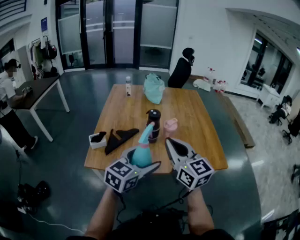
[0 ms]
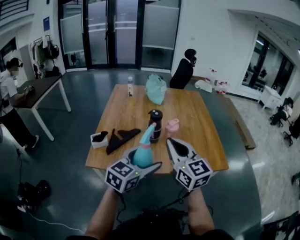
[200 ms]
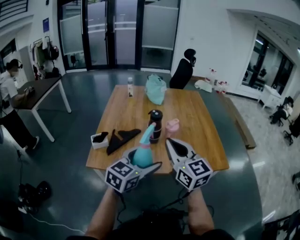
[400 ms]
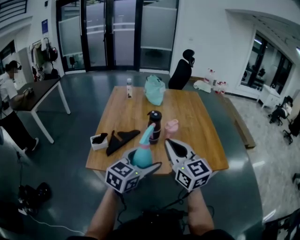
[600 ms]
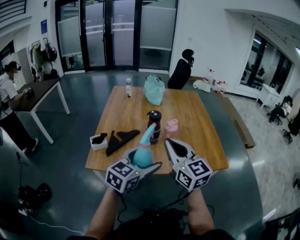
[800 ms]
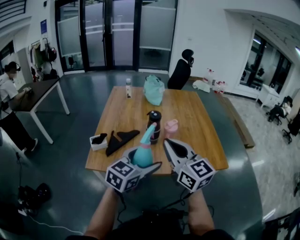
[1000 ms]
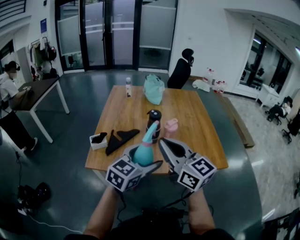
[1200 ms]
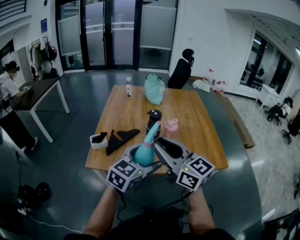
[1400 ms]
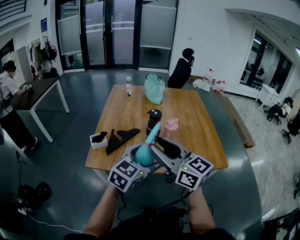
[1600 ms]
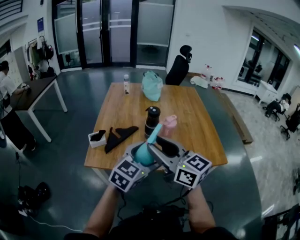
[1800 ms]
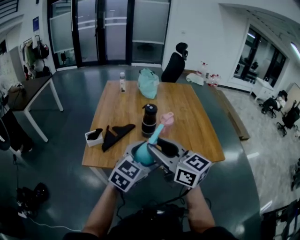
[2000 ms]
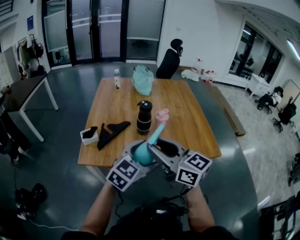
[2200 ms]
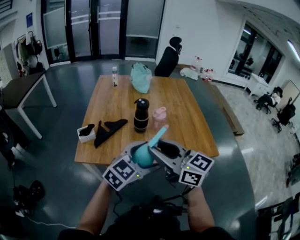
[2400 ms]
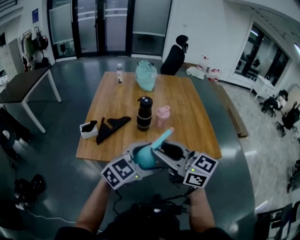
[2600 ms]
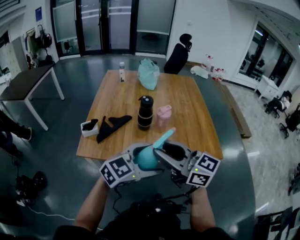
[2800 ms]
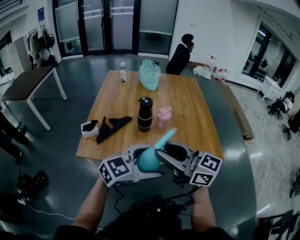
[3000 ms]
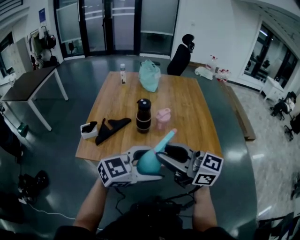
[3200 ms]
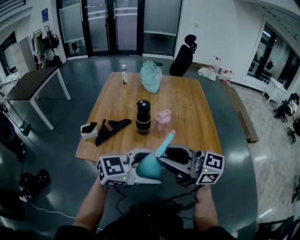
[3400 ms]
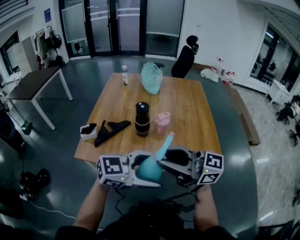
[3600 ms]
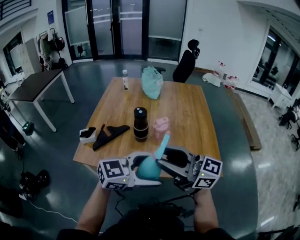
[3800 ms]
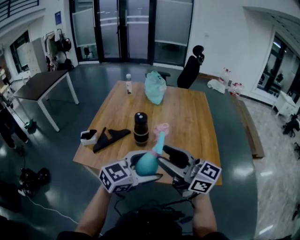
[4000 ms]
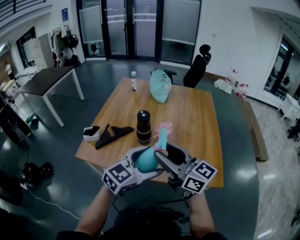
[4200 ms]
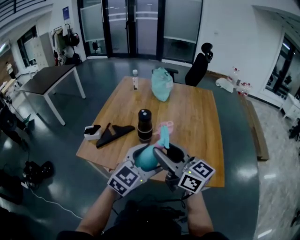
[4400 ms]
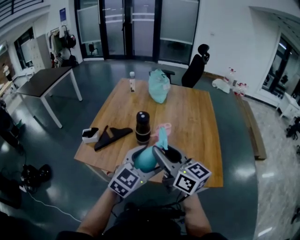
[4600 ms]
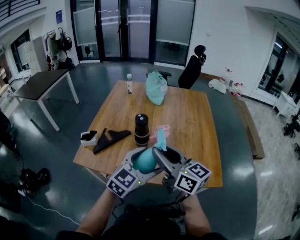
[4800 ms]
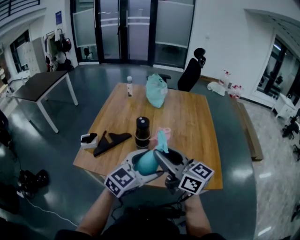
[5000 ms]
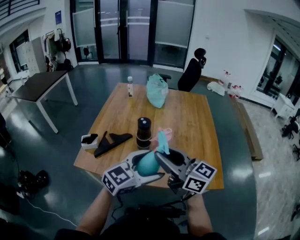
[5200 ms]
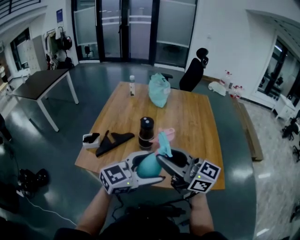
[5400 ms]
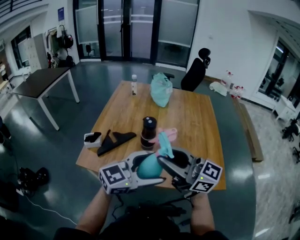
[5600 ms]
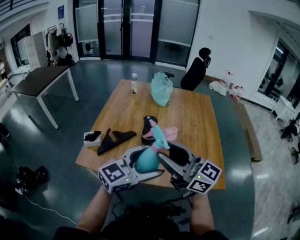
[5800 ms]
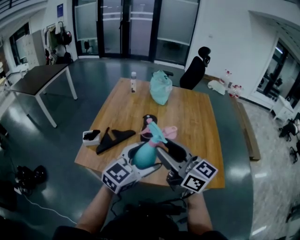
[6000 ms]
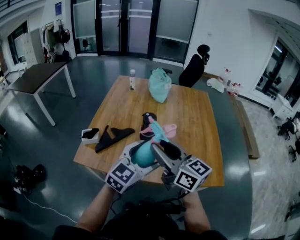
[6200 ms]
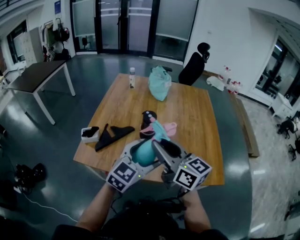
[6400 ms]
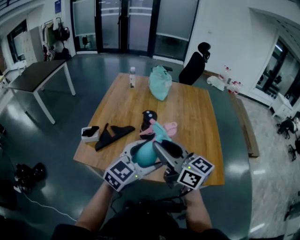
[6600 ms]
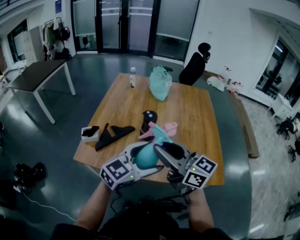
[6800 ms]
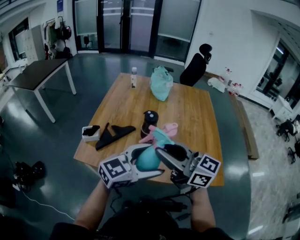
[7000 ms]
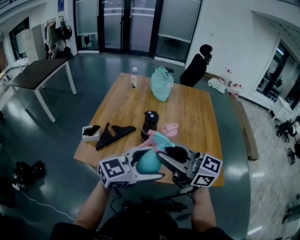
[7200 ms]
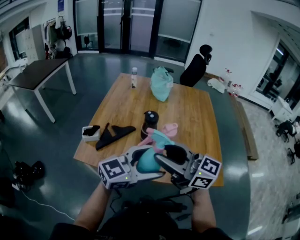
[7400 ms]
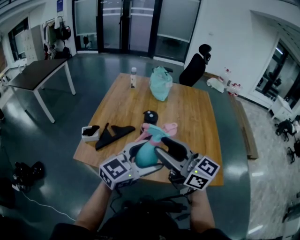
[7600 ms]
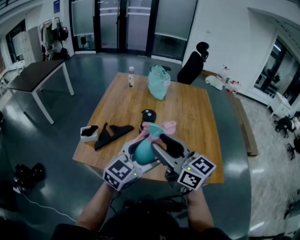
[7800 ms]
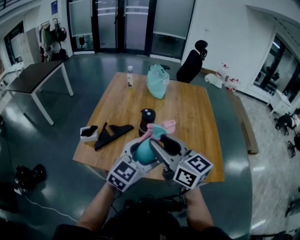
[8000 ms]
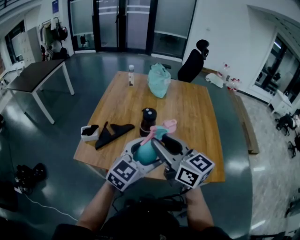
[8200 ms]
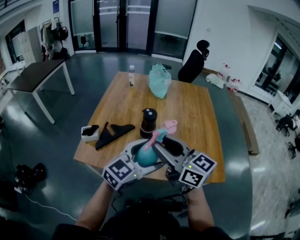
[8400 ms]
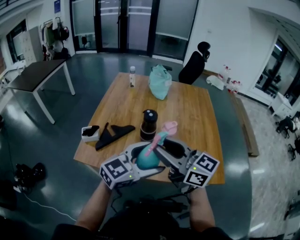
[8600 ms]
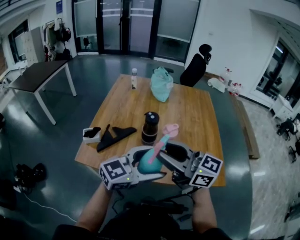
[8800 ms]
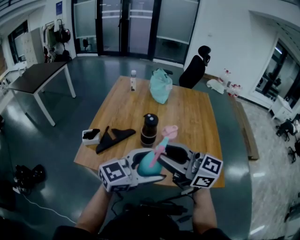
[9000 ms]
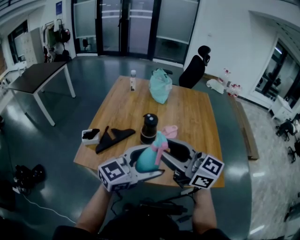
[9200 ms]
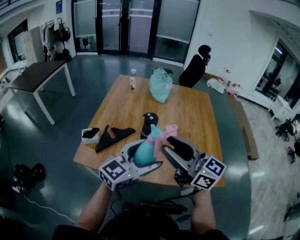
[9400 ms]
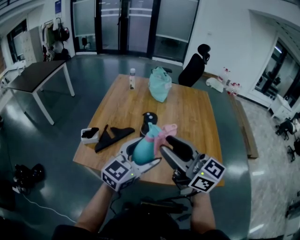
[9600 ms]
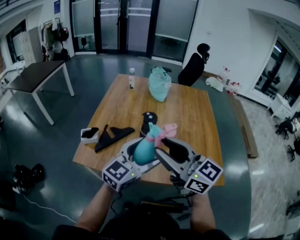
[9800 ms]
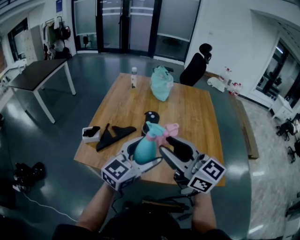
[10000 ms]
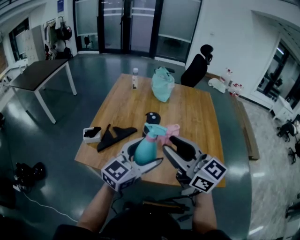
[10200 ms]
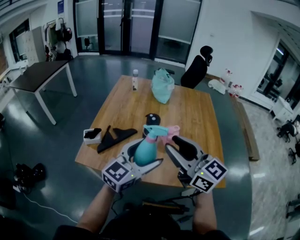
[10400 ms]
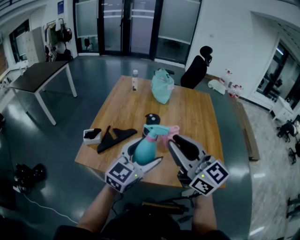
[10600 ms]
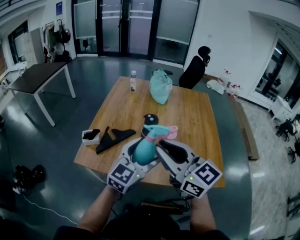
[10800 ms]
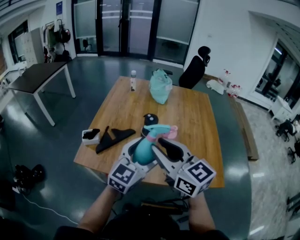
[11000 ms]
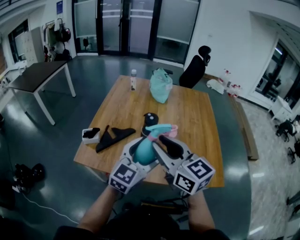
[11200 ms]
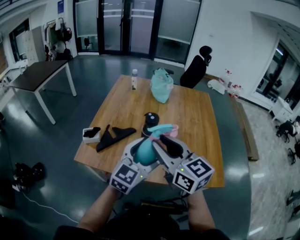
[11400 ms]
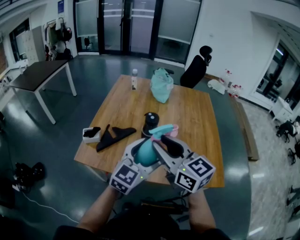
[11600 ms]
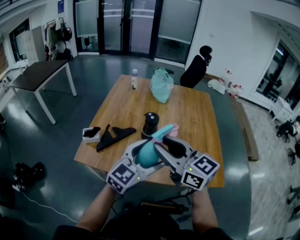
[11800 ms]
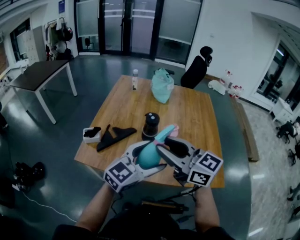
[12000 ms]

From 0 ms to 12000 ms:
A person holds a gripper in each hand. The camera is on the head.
From 0 ms to 1600 ms: The right gripper moves to the left, approximately 5 cm, and opens.
From 1600 ms to 3000 ms: The left gripper moves roughly 10 cm, and rotates some 30 degrees. The right gripper shifts by roughly 10 cm.
From 3000 ms to 4400 ms: The left gripper shifts by about 10 cm, and swivels some 30 degrees, while the right gripper moves some 10 cm.
From 4400 ms to 6000 ms: The left gripper shifts by roughly 5 cm; the right gripper ends up approximately 5 cm from where it was.
From 7600 ms to 9000 ms: The grippers stay close to where they were, moving slightly.
From 9000 ms to 10400 ms: The right gripper swivels approximately 20 degrees. The left gripper ends up about 5 cm from where it was, and changes its angle by some 20 degrees.
From 10400 ms to 12000 ms: The grippers stay close to where they were, moving slightly.

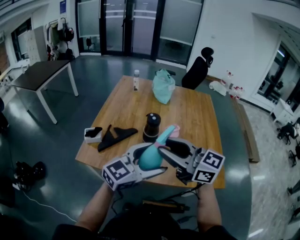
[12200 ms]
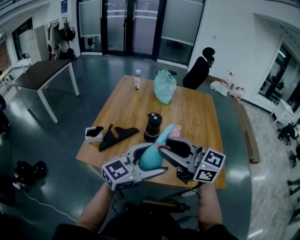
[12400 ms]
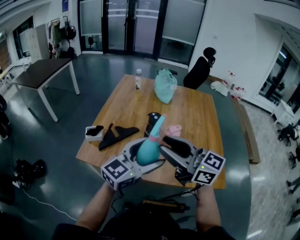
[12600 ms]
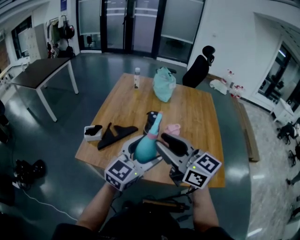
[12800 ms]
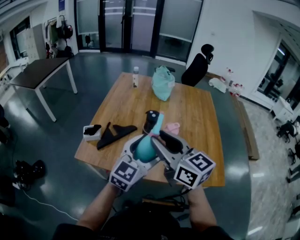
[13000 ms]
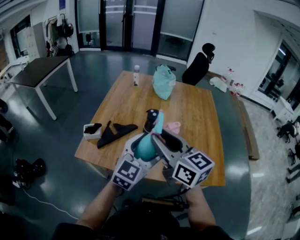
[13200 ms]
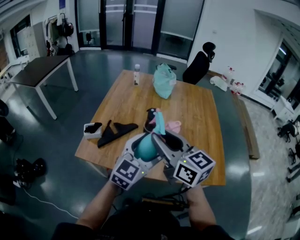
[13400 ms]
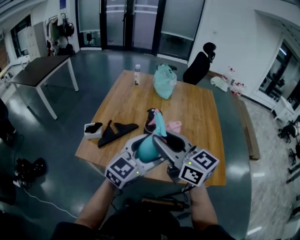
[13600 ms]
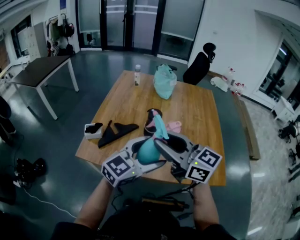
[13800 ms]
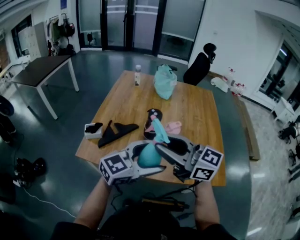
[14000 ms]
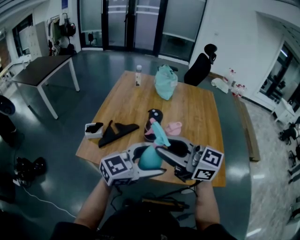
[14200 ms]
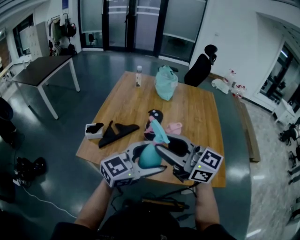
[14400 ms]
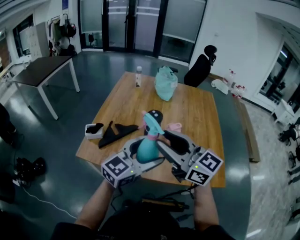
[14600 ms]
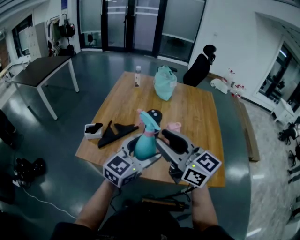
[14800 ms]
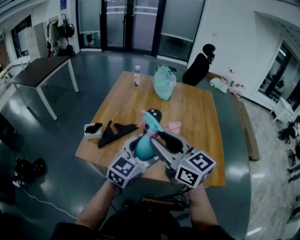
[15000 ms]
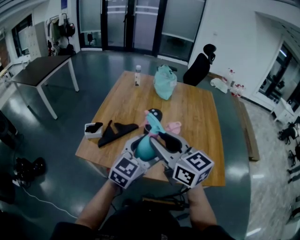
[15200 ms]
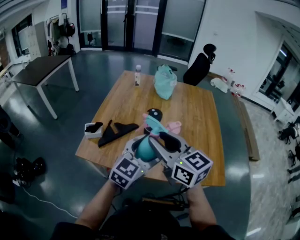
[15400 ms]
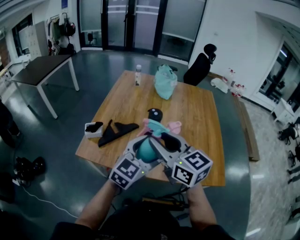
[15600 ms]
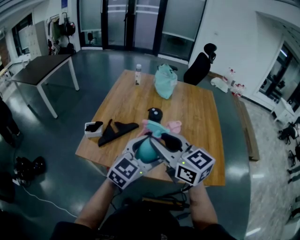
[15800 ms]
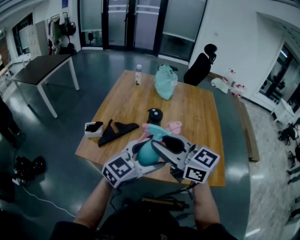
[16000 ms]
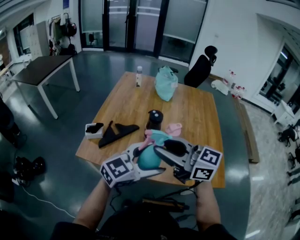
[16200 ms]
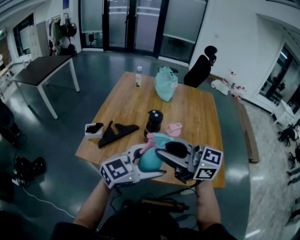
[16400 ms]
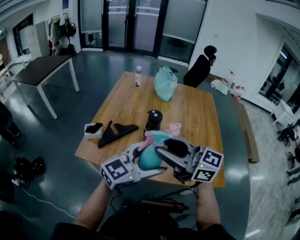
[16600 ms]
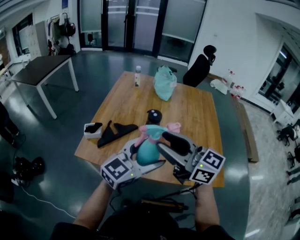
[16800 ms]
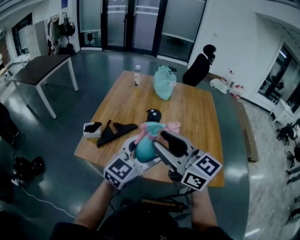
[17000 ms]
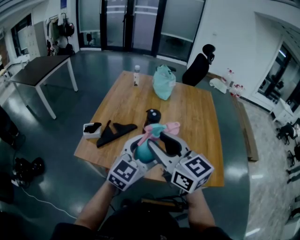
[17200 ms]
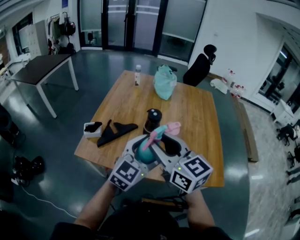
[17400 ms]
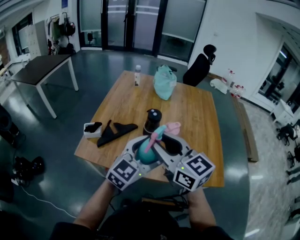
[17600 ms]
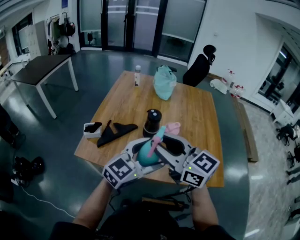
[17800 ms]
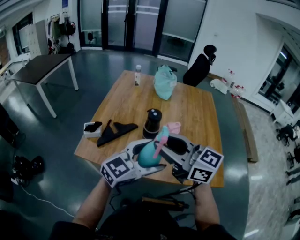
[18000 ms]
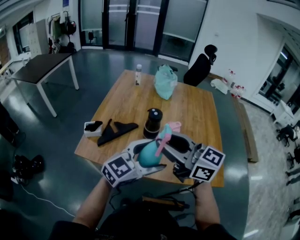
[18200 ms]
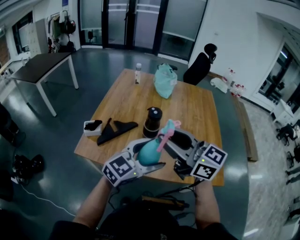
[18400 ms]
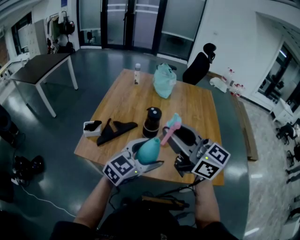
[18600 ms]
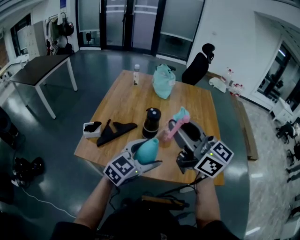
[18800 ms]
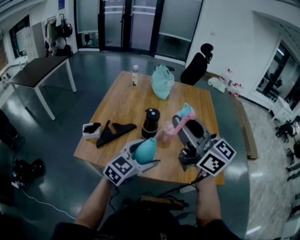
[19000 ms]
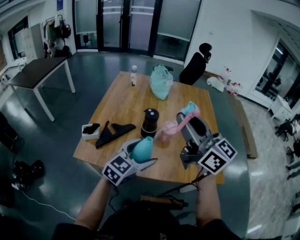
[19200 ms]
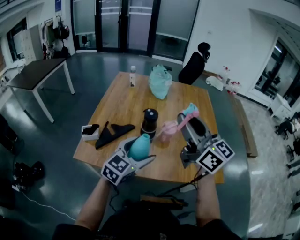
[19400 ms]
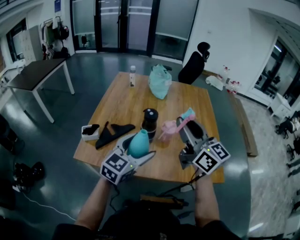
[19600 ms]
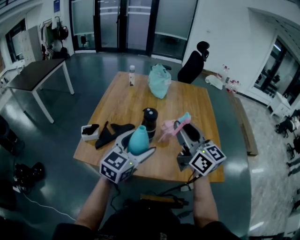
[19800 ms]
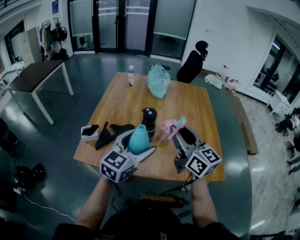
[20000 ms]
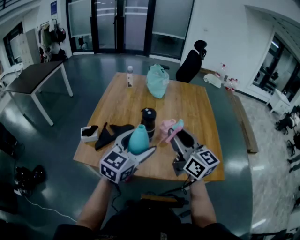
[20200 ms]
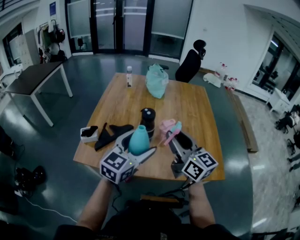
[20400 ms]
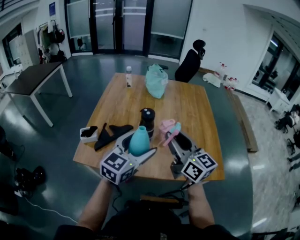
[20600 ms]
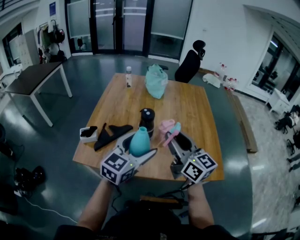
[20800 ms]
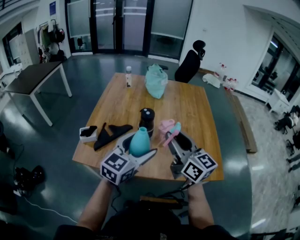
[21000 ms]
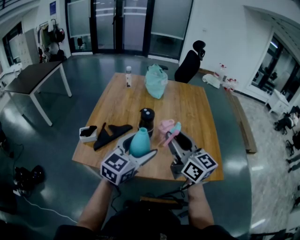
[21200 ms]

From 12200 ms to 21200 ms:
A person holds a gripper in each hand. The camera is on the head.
From 13800 ms to 15200 ms: The grippers move only a little.
From 15200 ms to 16600 ms: The right gripper rotates about 30 degrees; the left gripper ends up approximately 5 cm from where it was, and rotates some 20 degrees.
From 18200 ms to 19800 ms: The left gripper heads forward, covering roughly 5 cm; the right gripper travels to the right and forward by roughly 10 cm, and changes its angle by some 30 degrees.
From 19800 ms to 21200 ms: The grippers move only a little.

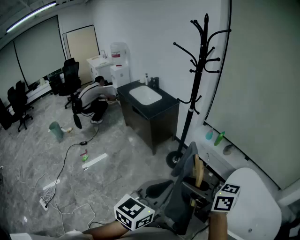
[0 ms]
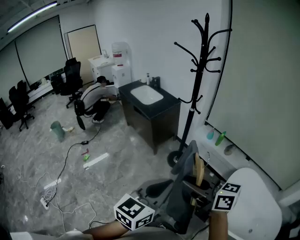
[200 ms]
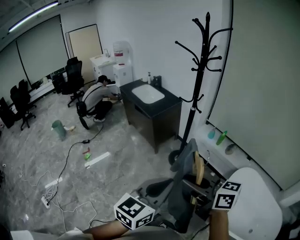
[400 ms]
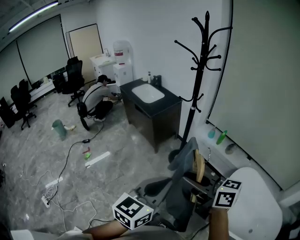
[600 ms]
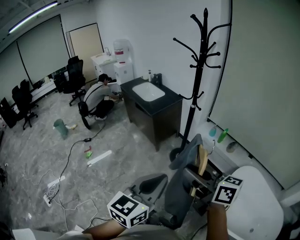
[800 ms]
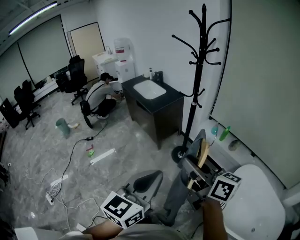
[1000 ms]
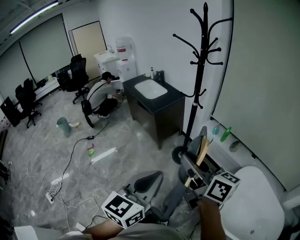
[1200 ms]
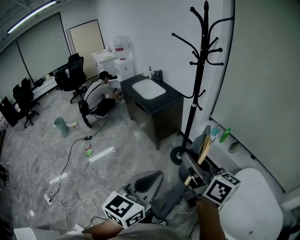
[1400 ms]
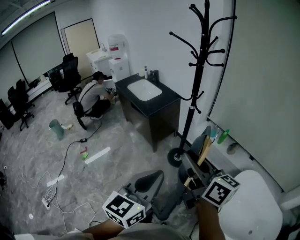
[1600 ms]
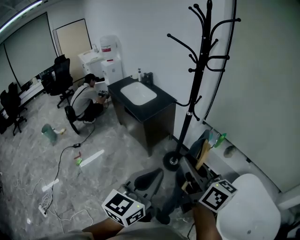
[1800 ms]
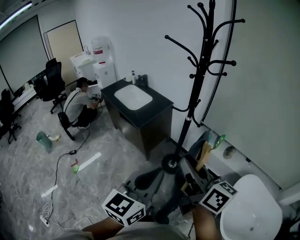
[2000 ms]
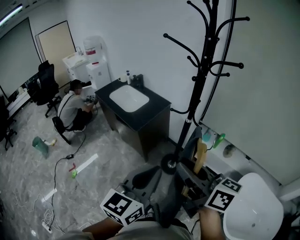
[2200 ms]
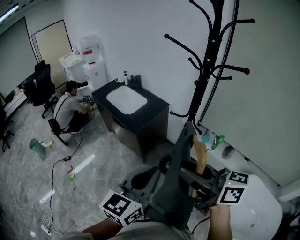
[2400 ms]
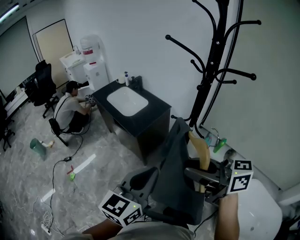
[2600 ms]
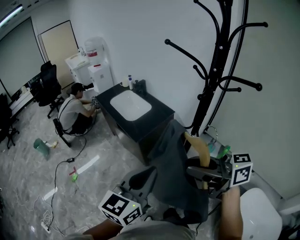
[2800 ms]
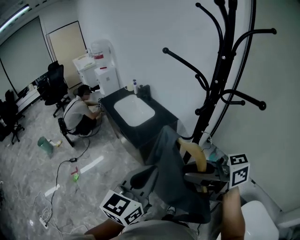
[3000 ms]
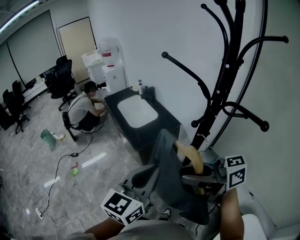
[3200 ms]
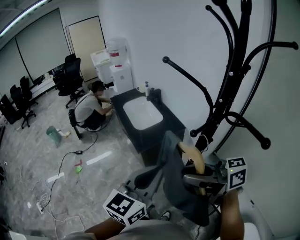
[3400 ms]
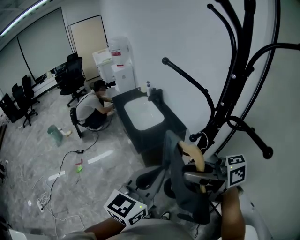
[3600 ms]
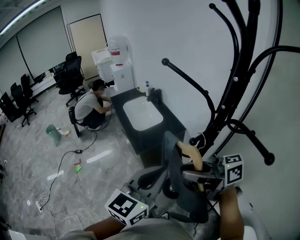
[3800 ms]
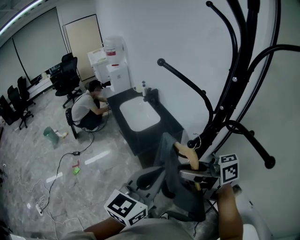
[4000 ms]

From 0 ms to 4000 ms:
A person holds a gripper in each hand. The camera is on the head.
From 0 ms to 1400 ms: The right gripper shifts about 10 cm forward and to the right, and rotates roughly 20 degrees. Meanwhile the left gripper shifts by approximately 5 cm.
From 1400 ms to 2600 ms: Both grippers travel together forward, approximately 30 cm. The right gripper swivels roughly 20 degrees.
From 2600 ms to 4000 ms: The grippers both shift to the right and forward by about 25 cm. The right gripper turns by roughly 30 degrees.
